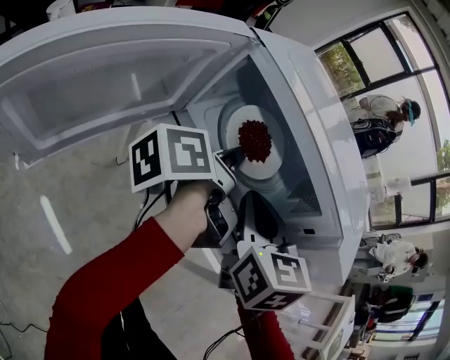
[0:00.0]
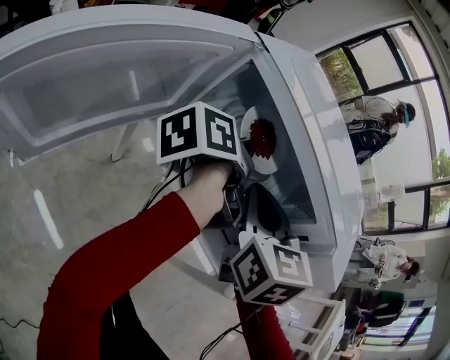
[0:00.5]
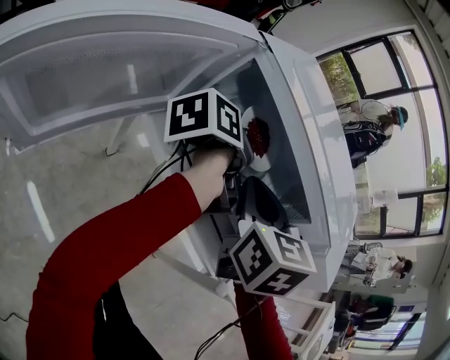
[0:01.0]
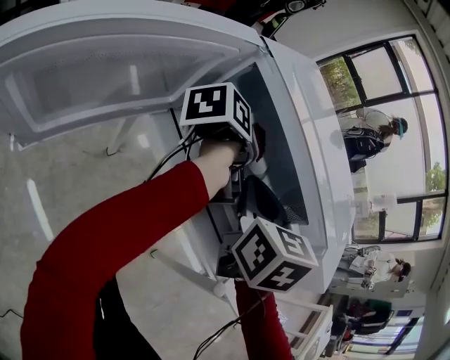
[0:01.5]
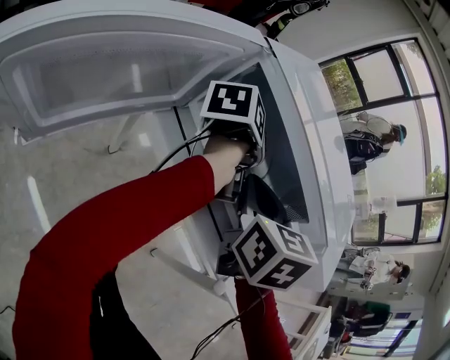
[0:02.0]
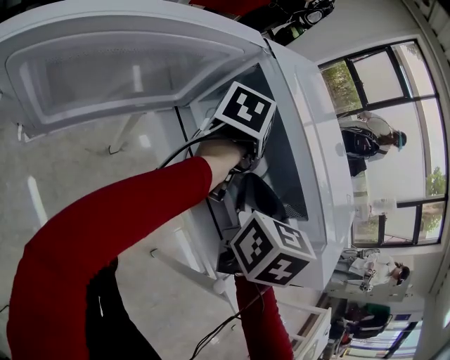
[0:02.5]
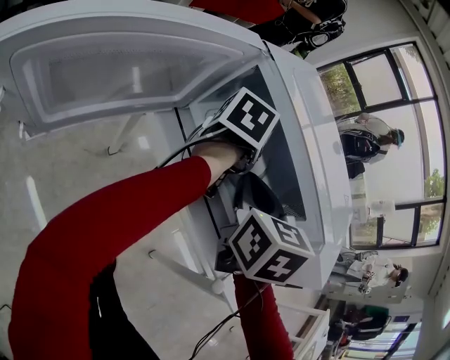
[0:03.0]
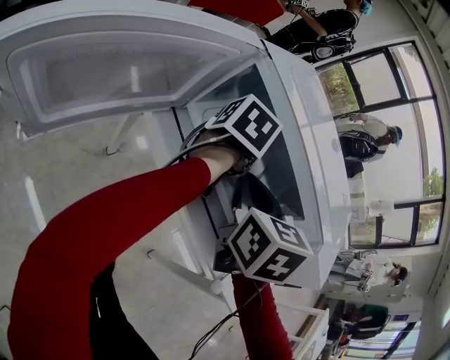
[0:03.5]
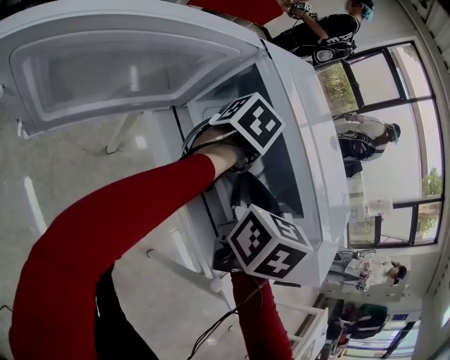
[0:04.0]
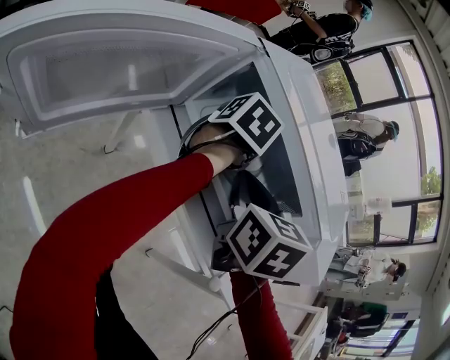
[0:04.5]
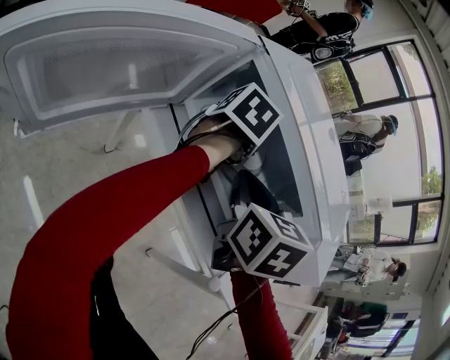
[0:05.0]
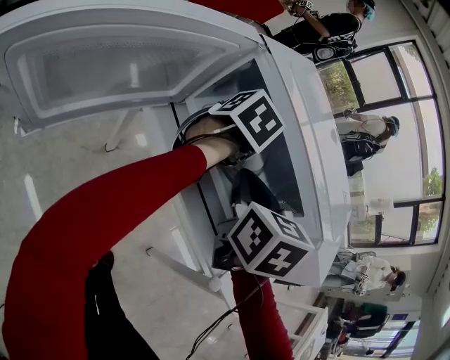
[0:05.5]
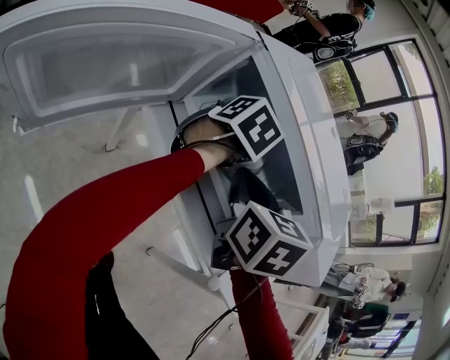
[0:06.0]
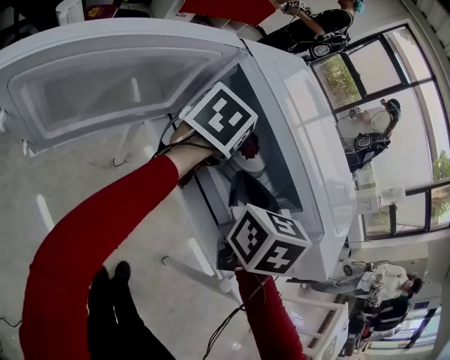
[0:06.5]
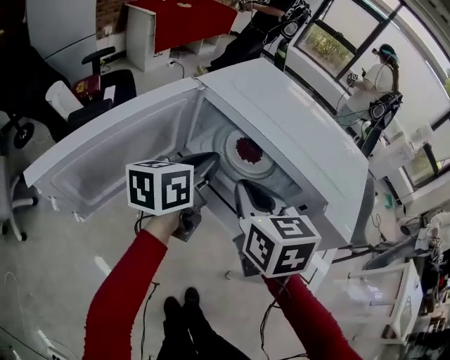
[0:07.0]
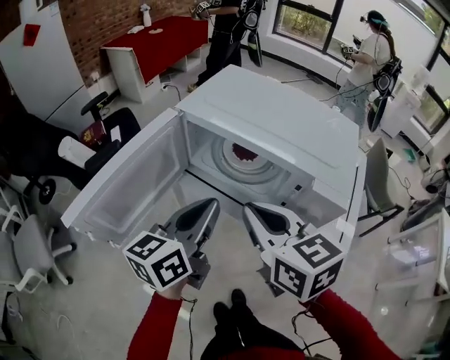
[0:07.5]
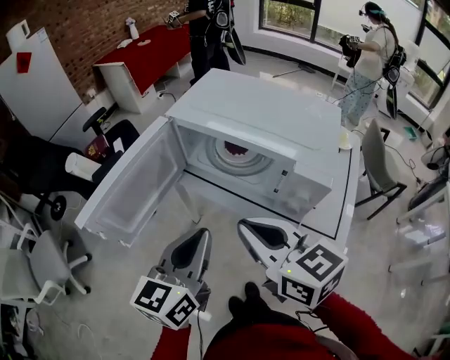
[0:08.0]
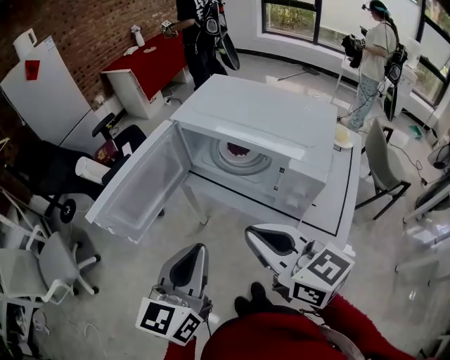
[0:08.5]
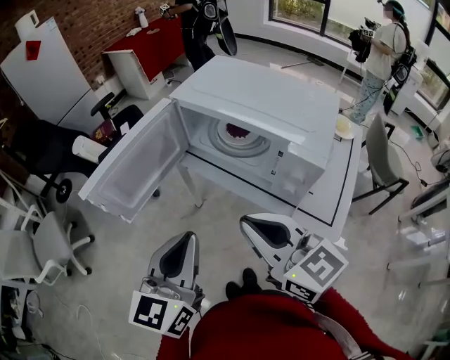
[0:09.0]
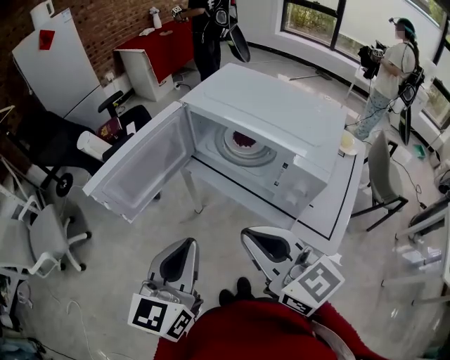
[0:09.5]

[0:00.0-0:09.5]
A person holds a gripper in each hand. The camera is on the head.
0:00.0 to 0:02.0: The left gripper moves roughly 5 cm, and rotates some 30 degrees.
0:02.0 to 0:04.0: The left gripper turns by some 40 degrees, and opens up.
0:04.0 to 0:05.5: The grippers stay close to where they were, moving slightly.
0:05.5 to 0:07.5: The left gripper goes about 25 cm backward and upward, tips its fingers upward by roughly 40 degrees, and closes, while the right gripper is displaced backward and upward by some 15 cm, and turns by approximately 30 degrees.
0:07.5 to 0:09.5: The two grippers go approximately 15 cm backward. The left gripper rotates about 30 degrees. Meanwhile the right gripper changes its angle by about 20 degrees.

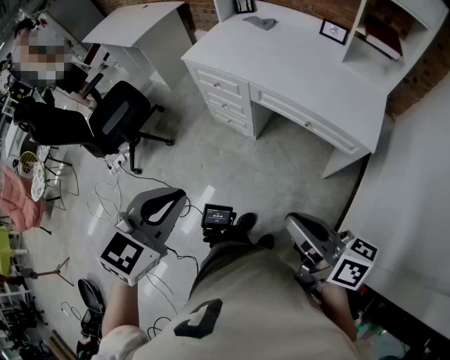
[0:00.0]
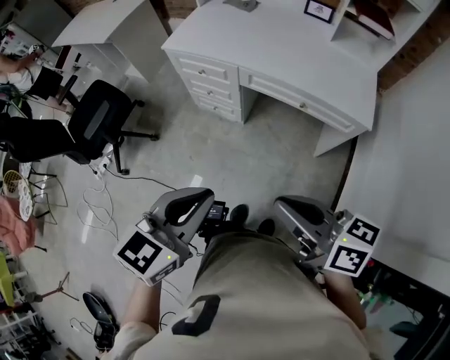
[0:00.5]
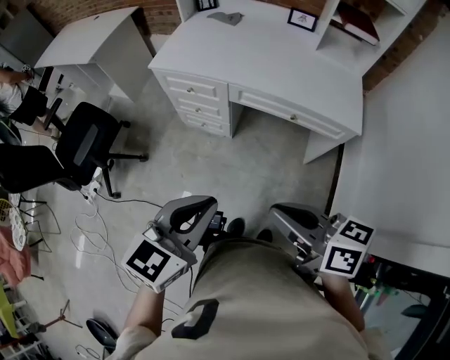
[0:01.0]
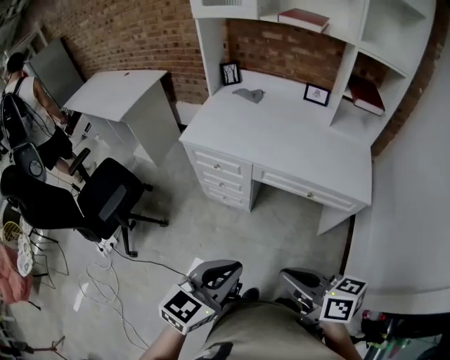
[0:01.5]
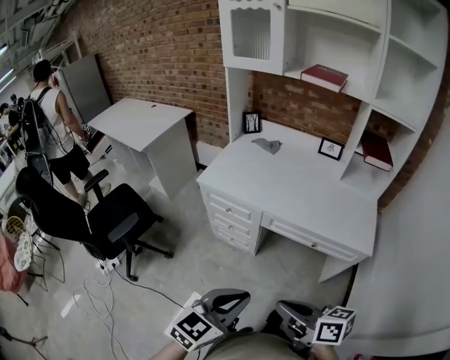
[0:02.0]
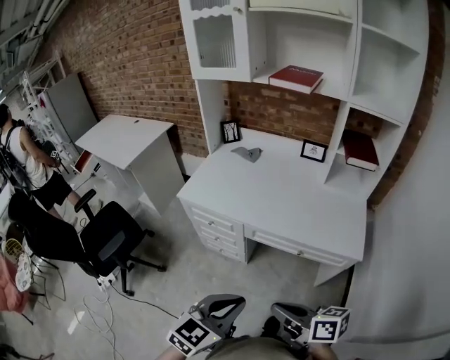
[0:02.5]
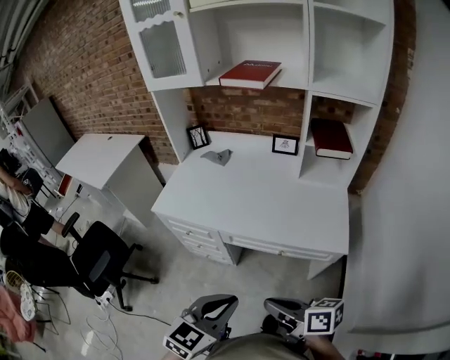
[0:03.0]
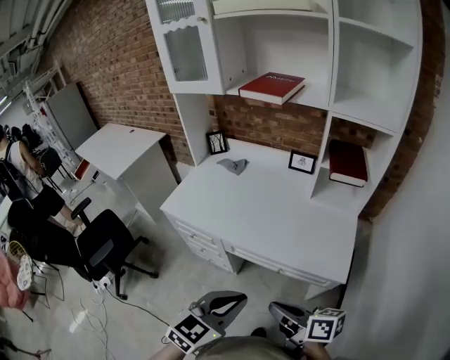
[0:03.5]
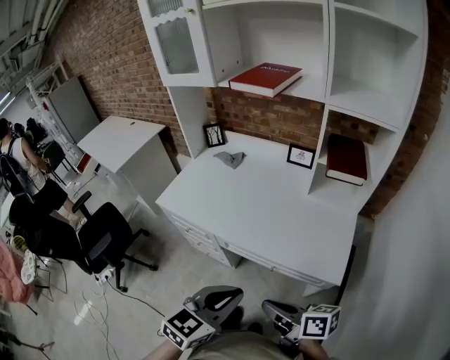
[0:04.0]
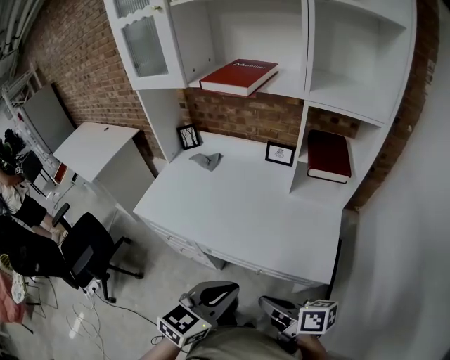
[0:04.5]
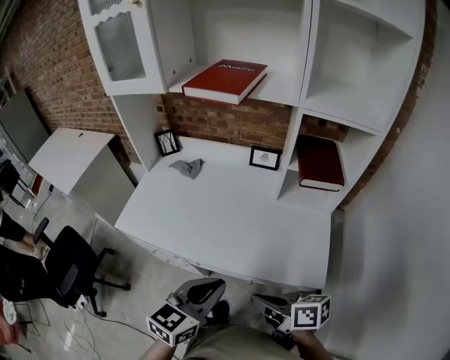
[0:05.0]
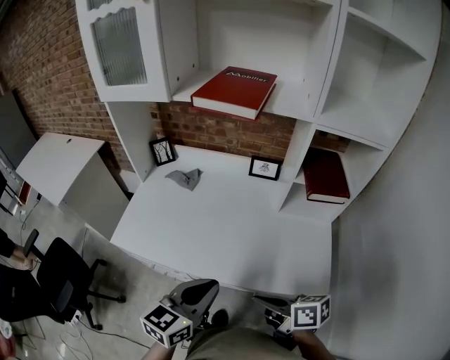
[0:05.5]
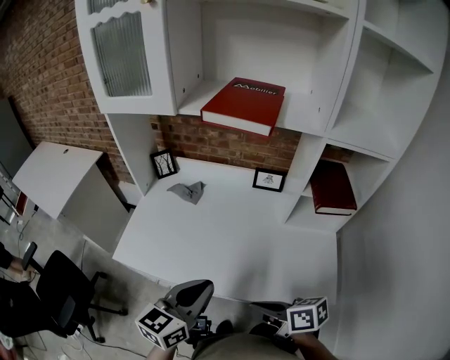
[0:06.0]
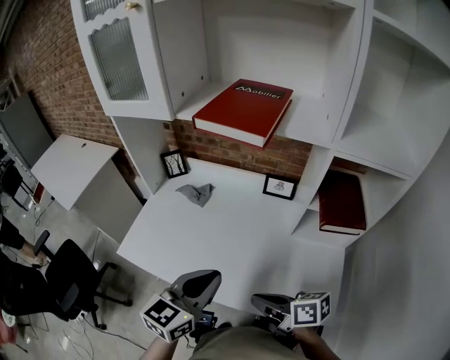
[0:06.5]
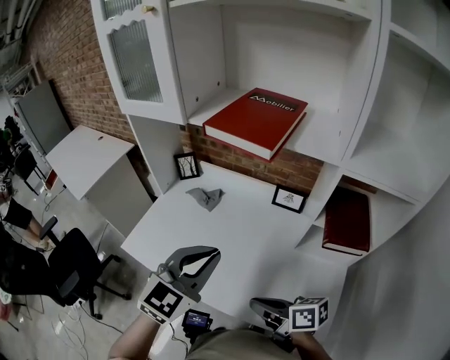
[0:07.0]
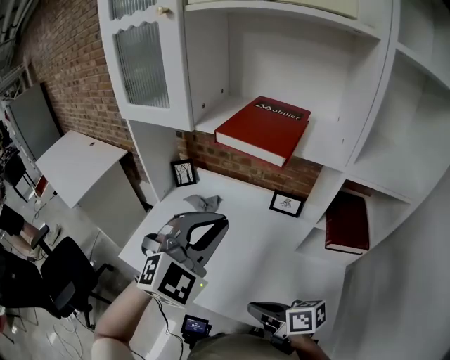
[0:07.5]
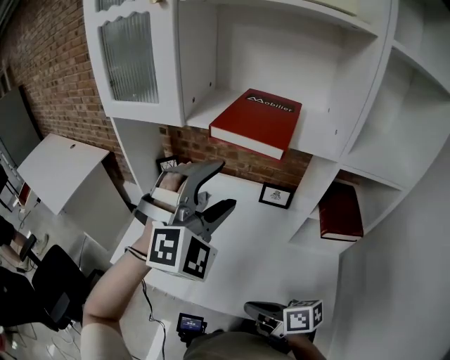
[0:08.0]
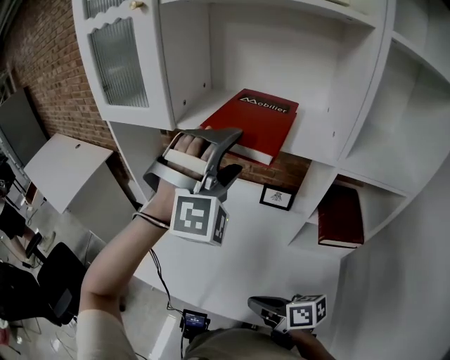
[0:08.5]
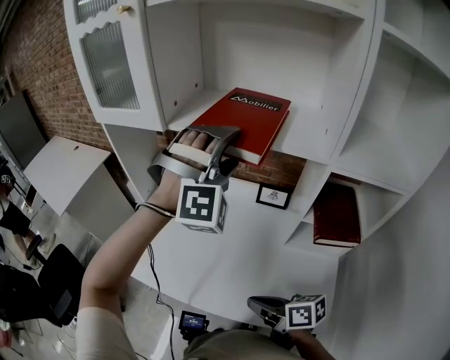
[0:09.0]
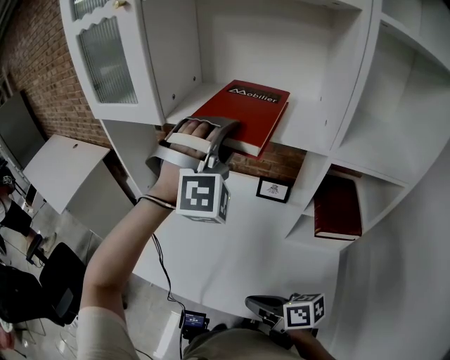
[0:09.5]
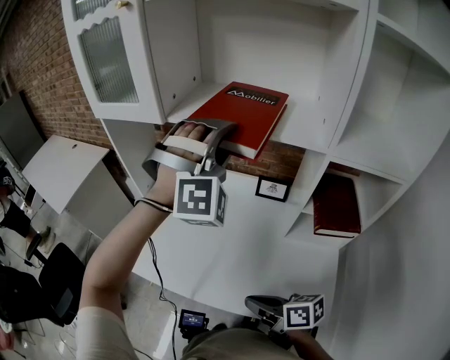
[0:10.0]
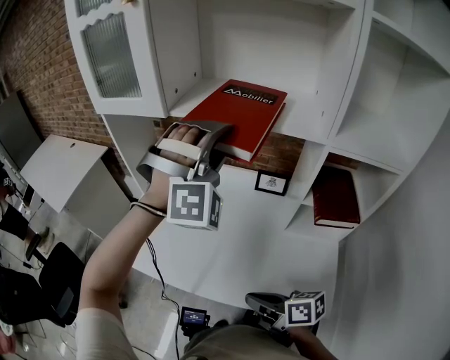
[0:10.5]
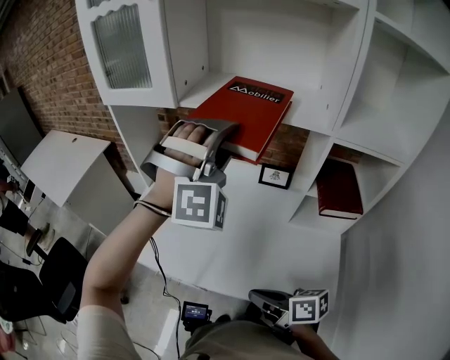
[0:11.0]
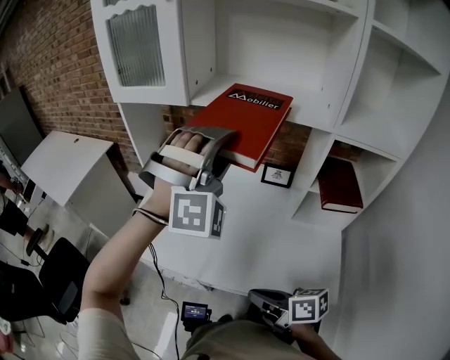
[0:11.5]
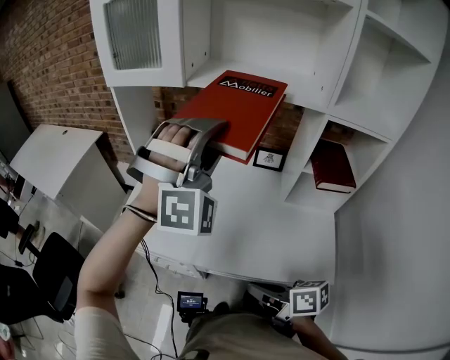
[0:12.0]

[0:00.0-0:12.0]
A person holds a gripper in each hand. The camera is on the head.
0:00.0 to 0:02.0: The right gripper heads to the left and forward, covering approximately 15 cm; the left gripper heads forward, covering about 10 cm, and turns by about 20 degrees.
0:02.0 to 0:04.0: The two grippers go about 25 cm to the right and forward.
0:04.0 to 0:06.0: Both grippers move forward, about 25 cm.
0:06.0 to 0:08.0: The right gripper moves forward, about 5 cm, and moves about 10 cm to the right and comes back. Meanwhile the left gripper goes approximately 30 cm forward, upward and to the right, rolls clockwise, seen from behind, by approximately 80 degrees, and opens up.
0:08.0 to 0:10.0: The left gripper heads to the right and forward, covering approximately 10 cm, rotates about 20 degrees, and closes its fingers.
0:10.0 to 0:12.0: Both grippers travel together to the left and backward, some 15 cm.

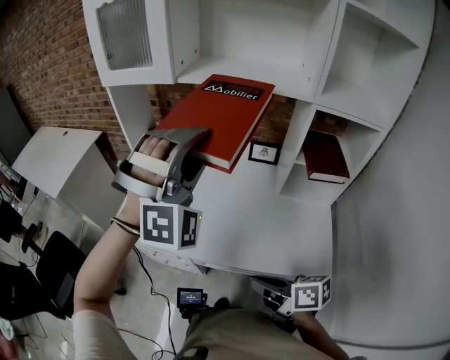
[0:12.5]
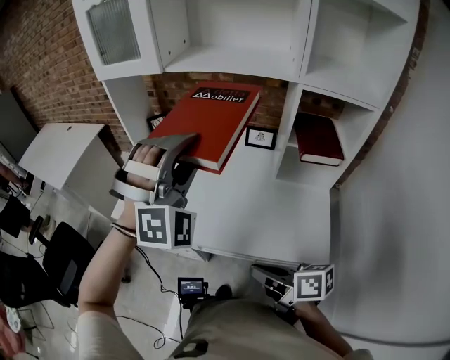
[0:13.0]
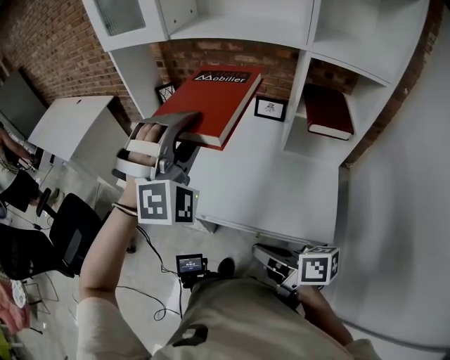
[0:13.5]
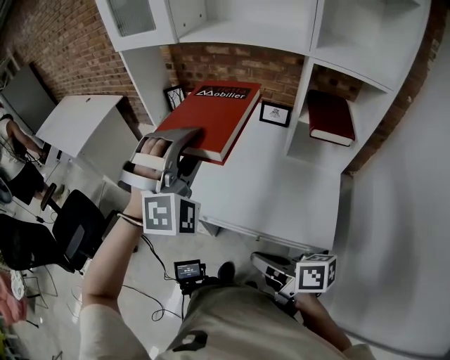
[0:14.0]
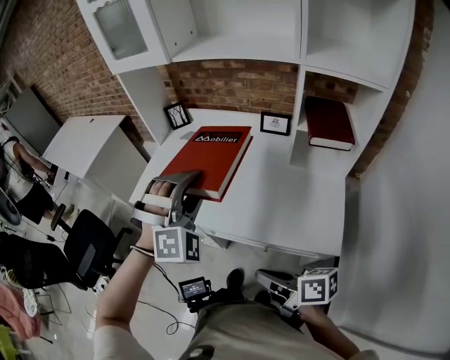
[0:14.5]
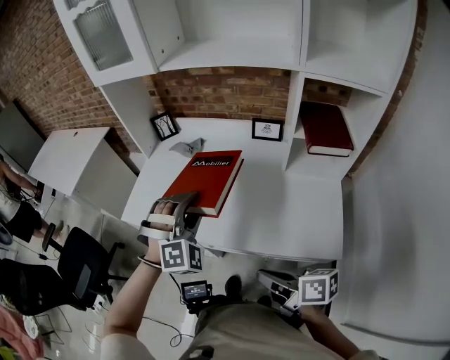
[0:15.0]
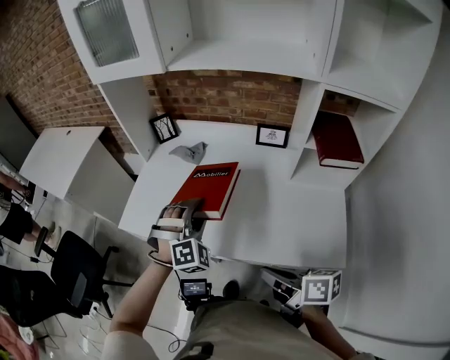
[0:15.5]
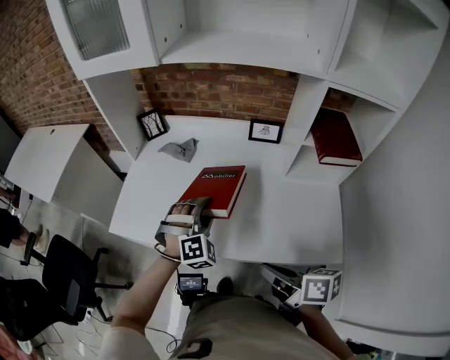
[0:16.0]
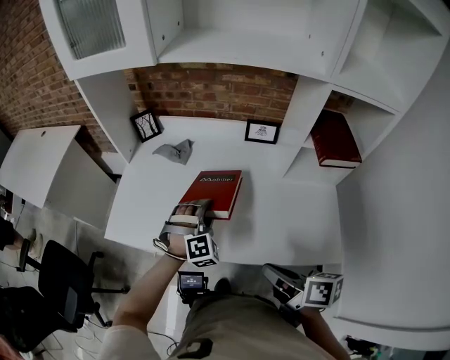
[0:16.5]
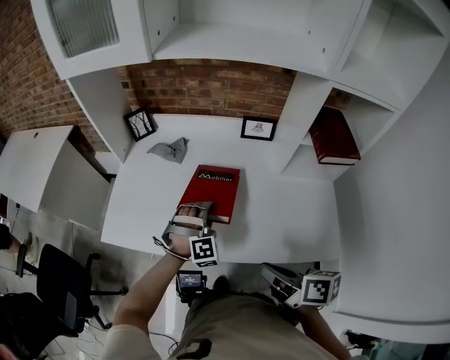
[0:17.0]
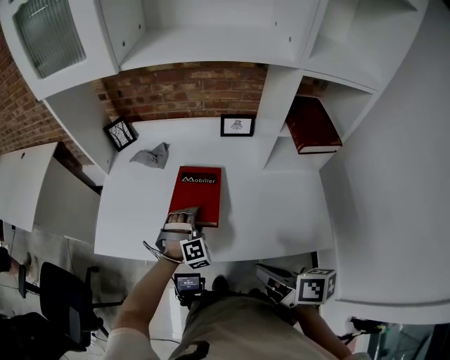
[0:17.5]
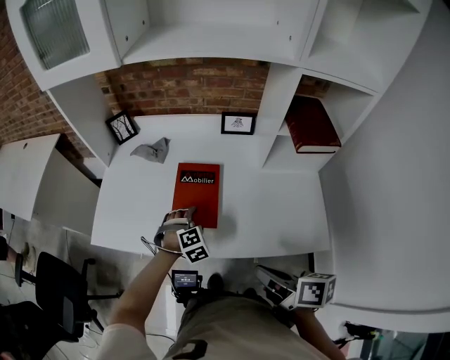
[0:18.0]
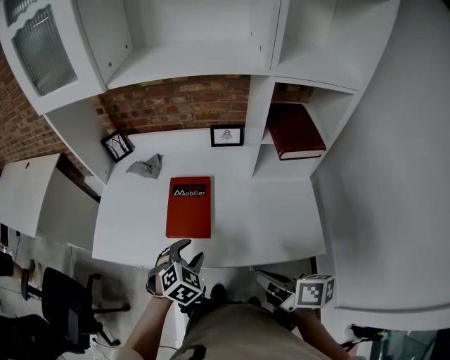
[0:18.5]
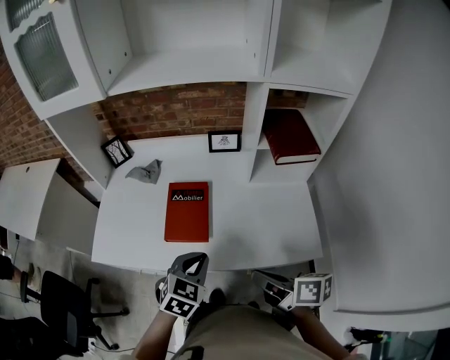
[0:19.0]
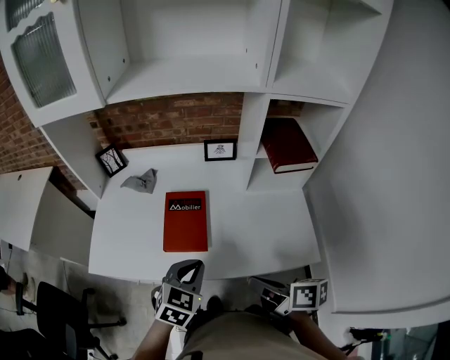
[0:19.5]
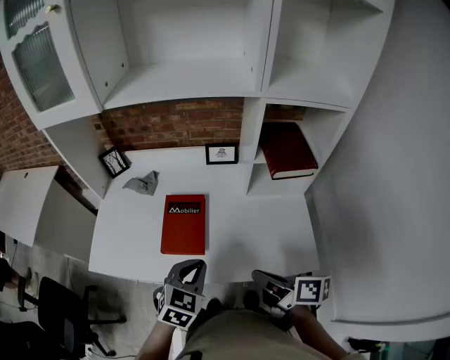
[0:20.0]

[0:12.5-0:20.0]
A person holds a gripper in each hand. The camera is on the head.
0:12.5 to 0:14.5: The left gripper goes roughly 15 cm downward and backward, and rotates approximately 20 degrees; the right gripper moves backward, approximately 10 cm.
0:14.5 to 0:16.5: The left gripper goes roughly 25 cm downward and forward. The right gripper heads forward, covering roughly 15 cm, and changes its angle by approximately 20 degrees.
0:16.5 to 0:18.0: The left gripper shifts roughly 10 cm downward, rotates about 20 degrees, and opens.
0:18.0 to 0:20.0: The left gripper heads upward and backward, covering some 20 cm, changes its angle by about 50 degrees, and closes; the right gripper moves to the right, about 5 cm.
